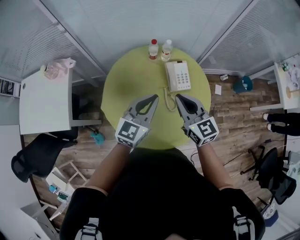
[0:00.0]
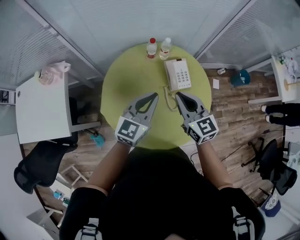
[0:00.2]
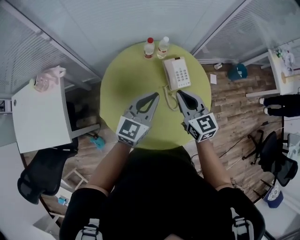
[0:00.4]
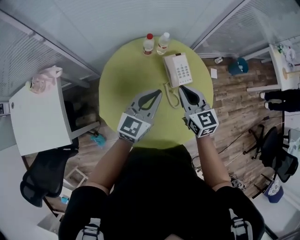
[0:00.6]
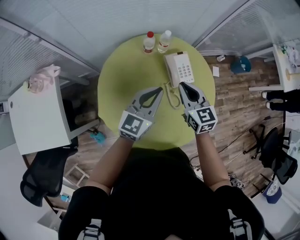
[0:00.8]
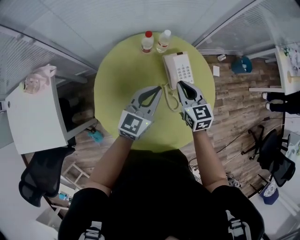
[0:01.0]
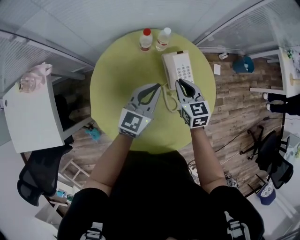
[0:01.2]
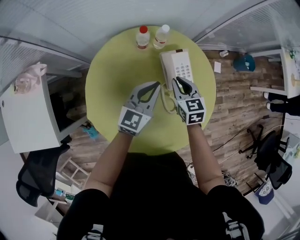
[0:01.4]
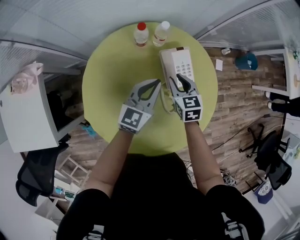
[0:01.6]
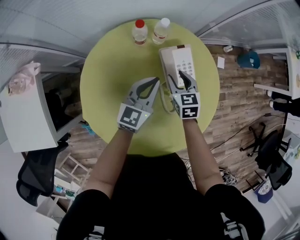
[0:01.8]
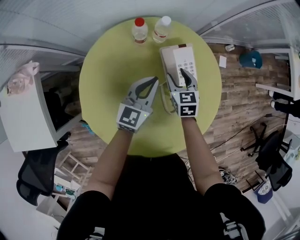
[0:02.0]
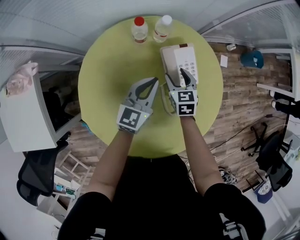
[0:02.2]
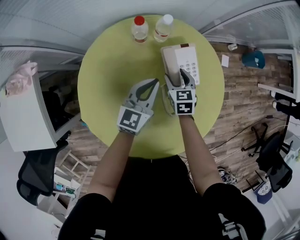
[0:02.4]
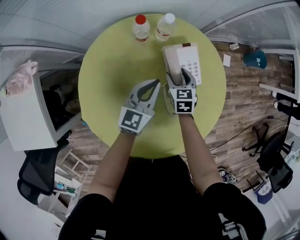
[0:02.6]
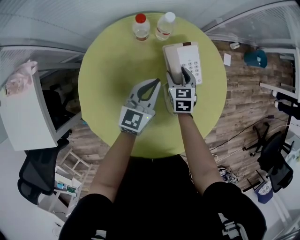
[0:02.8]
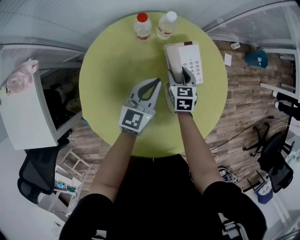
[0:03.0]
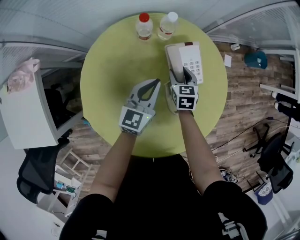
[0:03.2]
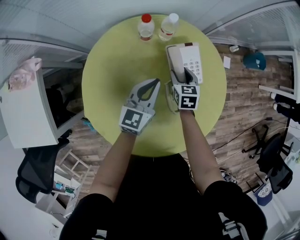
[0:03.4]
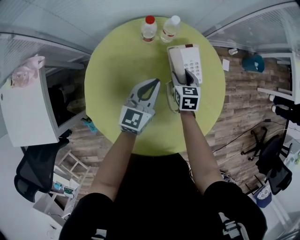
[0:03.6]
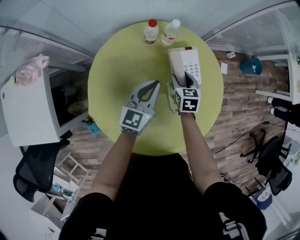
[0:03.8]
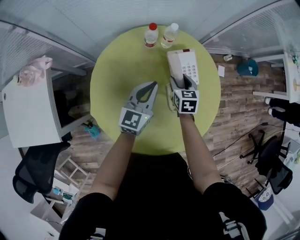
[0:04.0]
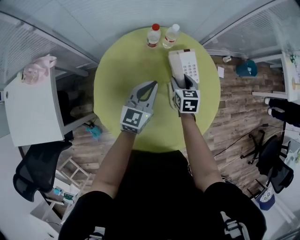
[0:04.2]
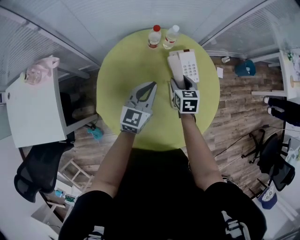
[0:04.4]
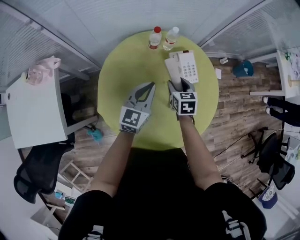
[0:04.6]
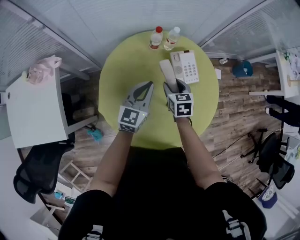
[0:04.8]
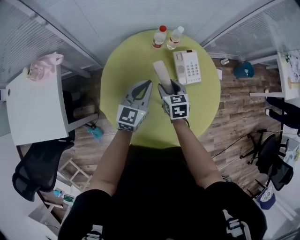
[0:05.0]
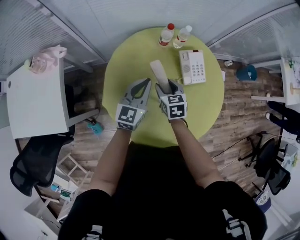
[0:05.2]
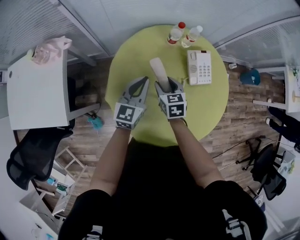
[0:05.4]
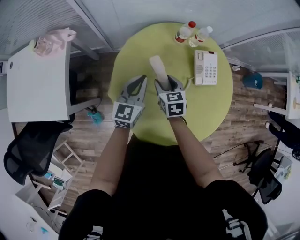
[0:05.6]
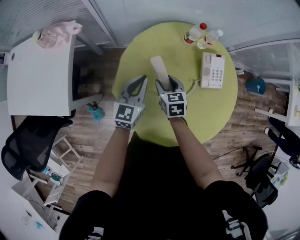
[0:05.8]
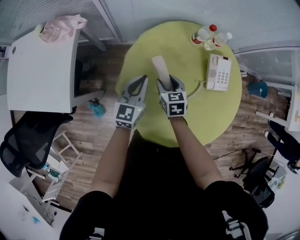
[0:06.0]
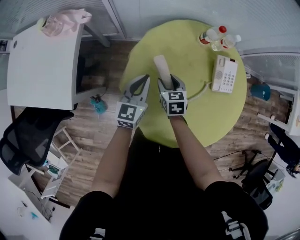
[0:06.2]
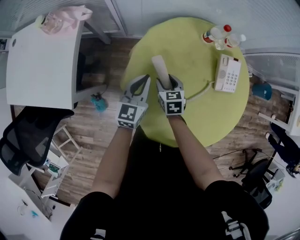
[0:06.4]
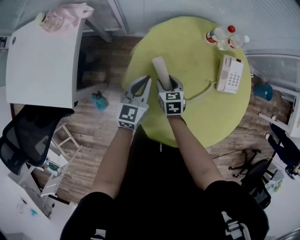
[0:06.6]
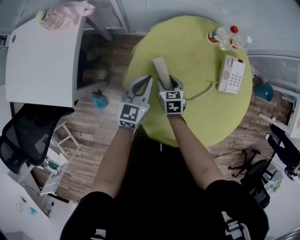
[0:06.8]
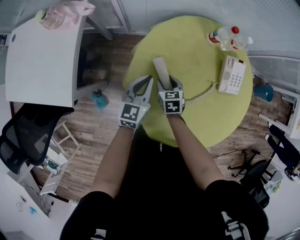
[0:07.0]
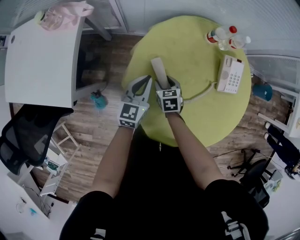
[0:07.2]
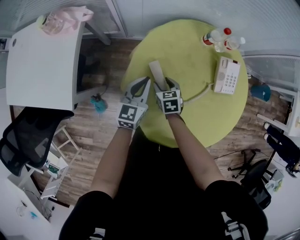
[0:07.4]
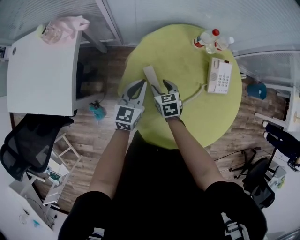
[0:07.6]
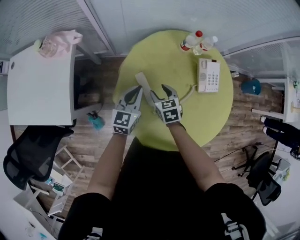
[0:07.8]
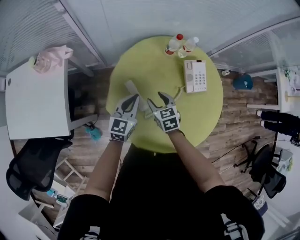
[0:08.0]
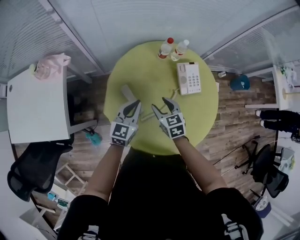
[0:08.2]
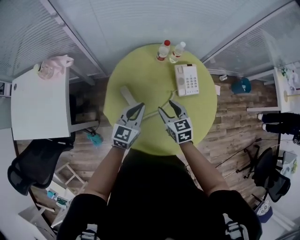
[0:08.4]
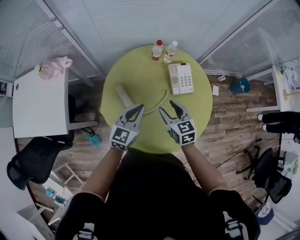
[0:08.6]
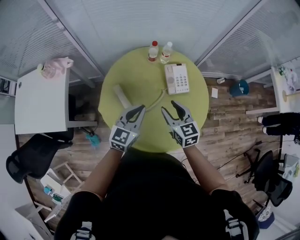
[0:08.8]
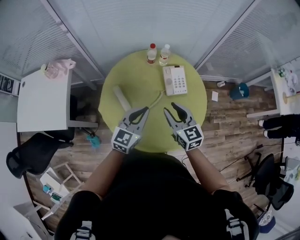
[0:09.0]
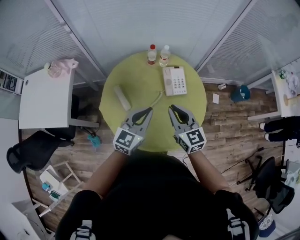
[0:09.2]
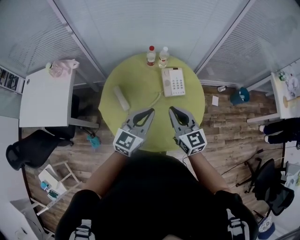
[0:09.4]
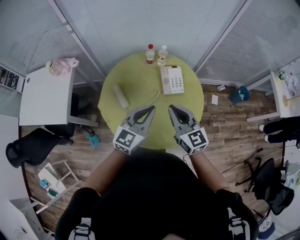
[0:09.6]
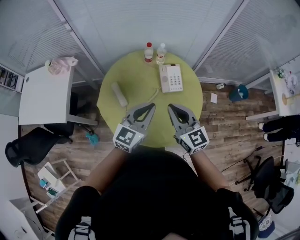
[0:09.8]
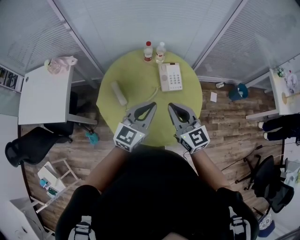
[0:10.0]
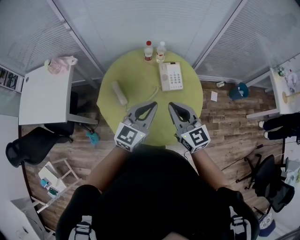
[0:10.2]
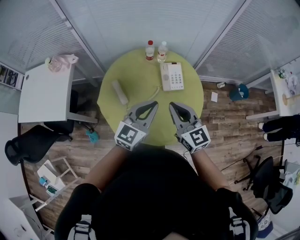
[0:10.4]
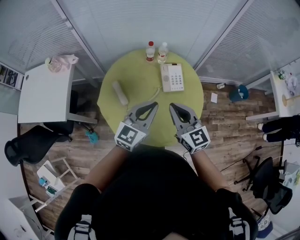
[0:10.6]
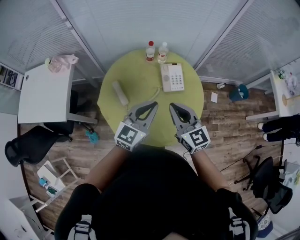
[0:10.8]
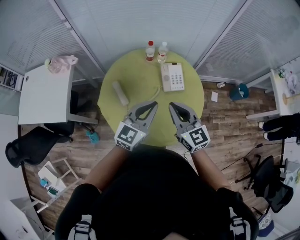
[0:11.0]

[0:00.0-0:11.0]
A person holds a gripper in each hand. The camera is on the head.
0:00.0 to 0:01.6: The grippers both shift downward and forward by some 30 cm. The right gripper swivels approximately 30 degrees, and opens up.
0:01.6 to 0:03.2: The right gripper shifts approximately 10 cm downward, and opens its fingers; the left gripper shifts about 5 cm downward.
0:03.2 to 0:04.8: The two grippers go about 15 cm upward, backward and to the left.
0:04.8 to 0:06.2: The grippers both shift to the left and downward by some 20 cm. The left gripper turns by roughly 20 degrees.
0:06.2 to 0:07.8: The right gripper goes downward and returns, roughly 5 cm each way.
0:07.8 to 0:09.4: The right gripper travels upward, to the right and backward by roughly 40 cm, angles its fingers upward, by about 40 degrees, and closes its fingers, while the left gripper travels to the right, upward and backward by about 35 cm.
0:09.4 to 0:11.0: The grippers make only small movements.

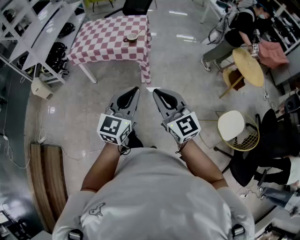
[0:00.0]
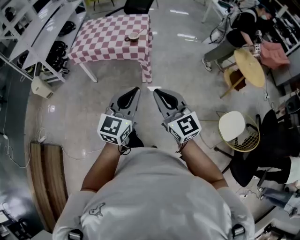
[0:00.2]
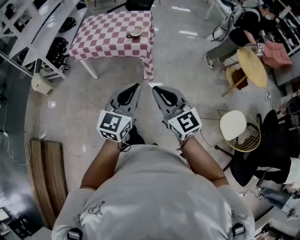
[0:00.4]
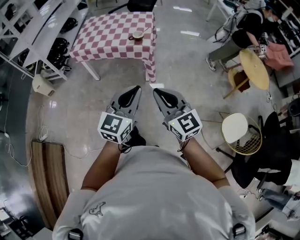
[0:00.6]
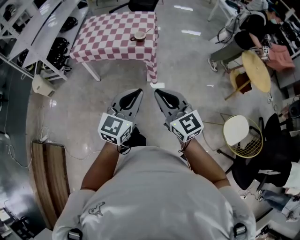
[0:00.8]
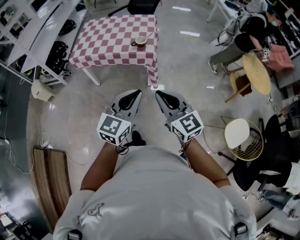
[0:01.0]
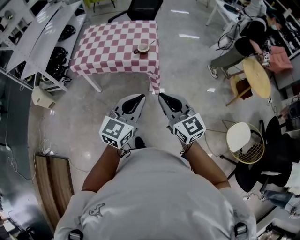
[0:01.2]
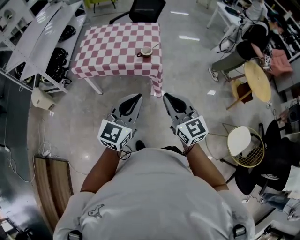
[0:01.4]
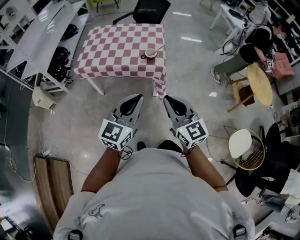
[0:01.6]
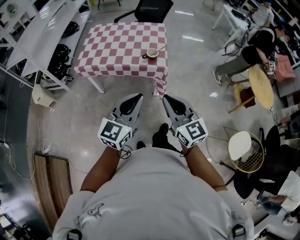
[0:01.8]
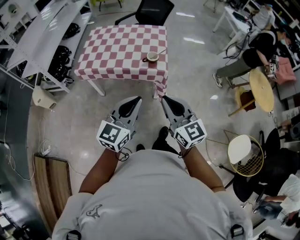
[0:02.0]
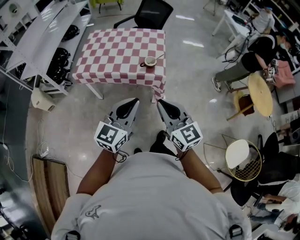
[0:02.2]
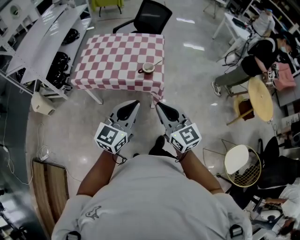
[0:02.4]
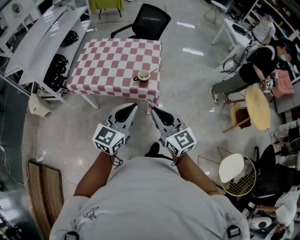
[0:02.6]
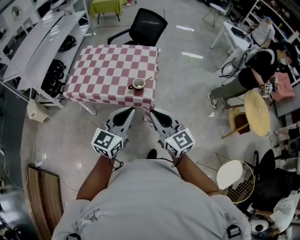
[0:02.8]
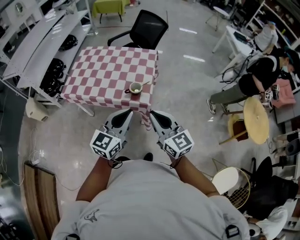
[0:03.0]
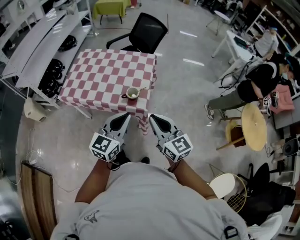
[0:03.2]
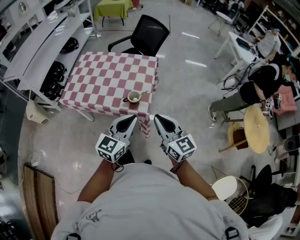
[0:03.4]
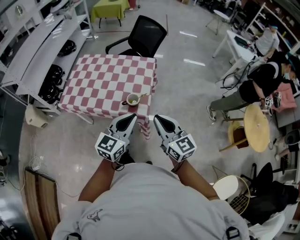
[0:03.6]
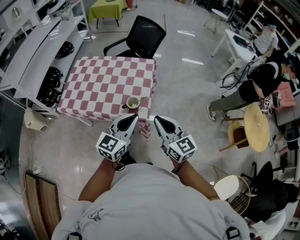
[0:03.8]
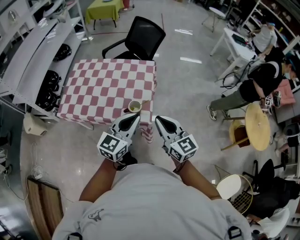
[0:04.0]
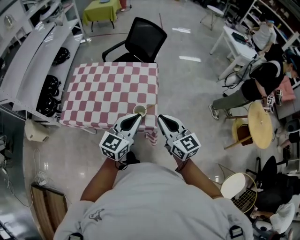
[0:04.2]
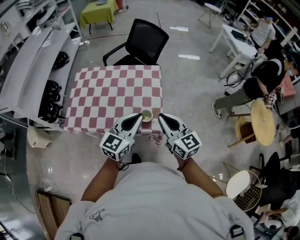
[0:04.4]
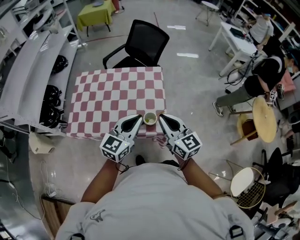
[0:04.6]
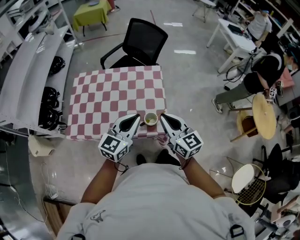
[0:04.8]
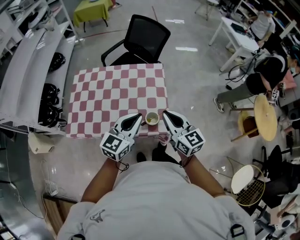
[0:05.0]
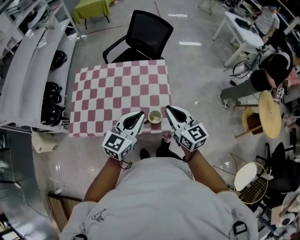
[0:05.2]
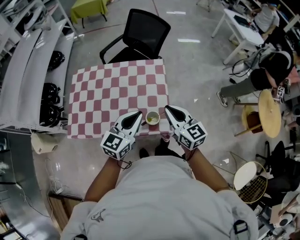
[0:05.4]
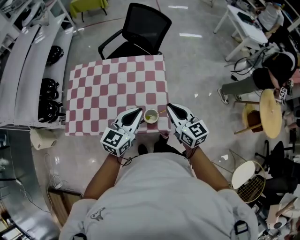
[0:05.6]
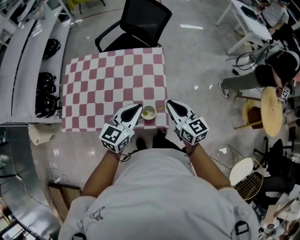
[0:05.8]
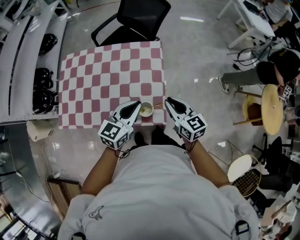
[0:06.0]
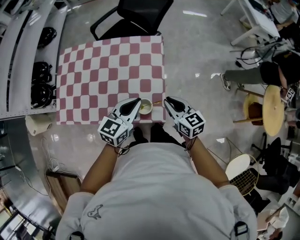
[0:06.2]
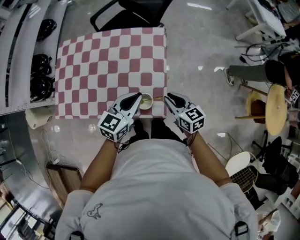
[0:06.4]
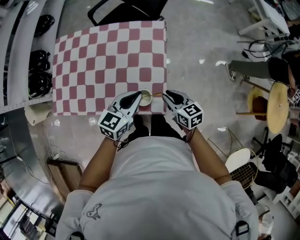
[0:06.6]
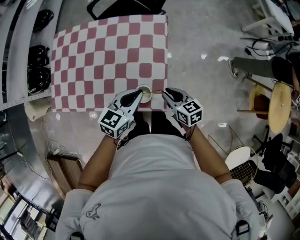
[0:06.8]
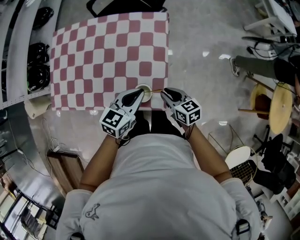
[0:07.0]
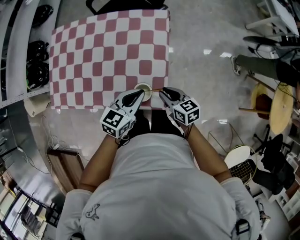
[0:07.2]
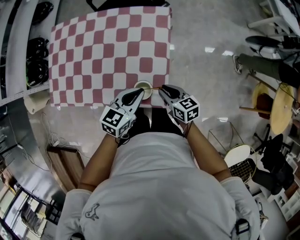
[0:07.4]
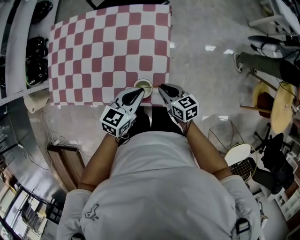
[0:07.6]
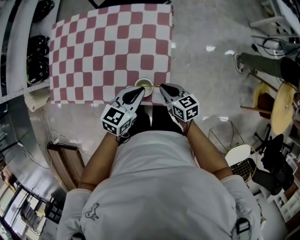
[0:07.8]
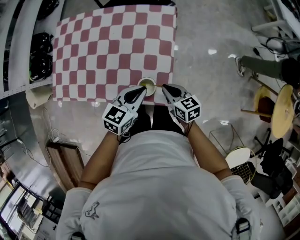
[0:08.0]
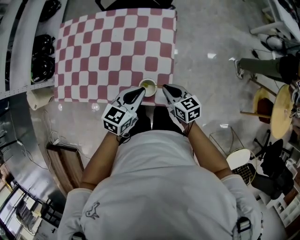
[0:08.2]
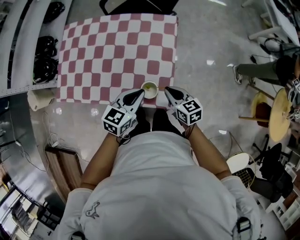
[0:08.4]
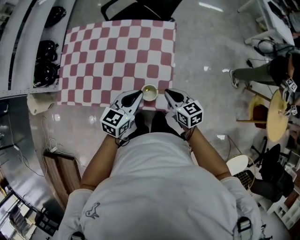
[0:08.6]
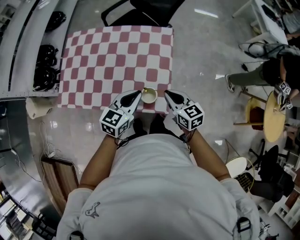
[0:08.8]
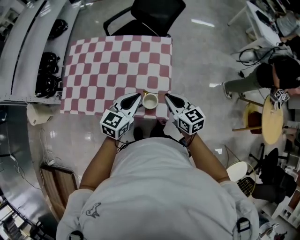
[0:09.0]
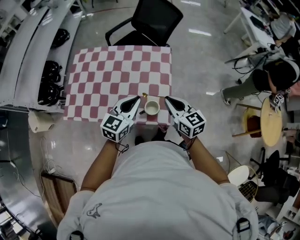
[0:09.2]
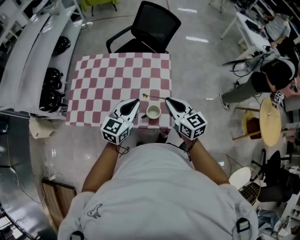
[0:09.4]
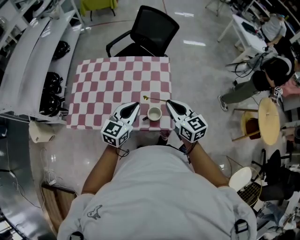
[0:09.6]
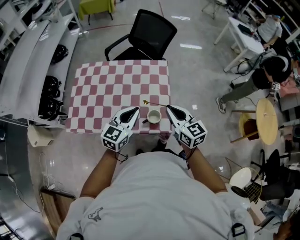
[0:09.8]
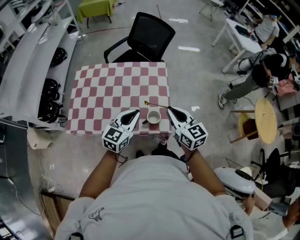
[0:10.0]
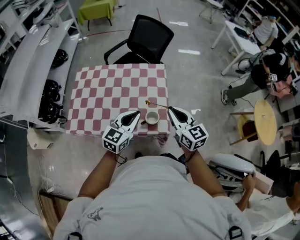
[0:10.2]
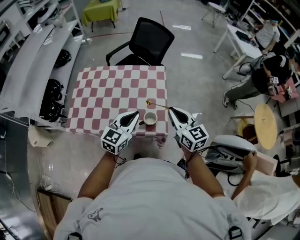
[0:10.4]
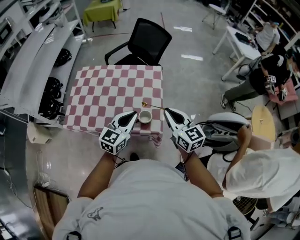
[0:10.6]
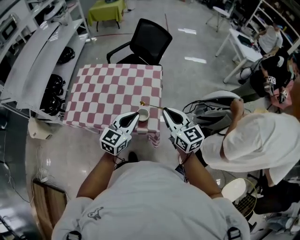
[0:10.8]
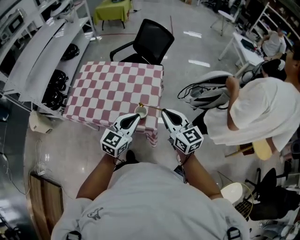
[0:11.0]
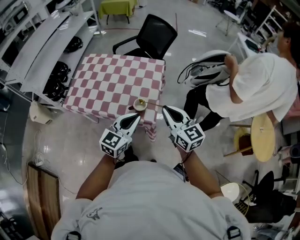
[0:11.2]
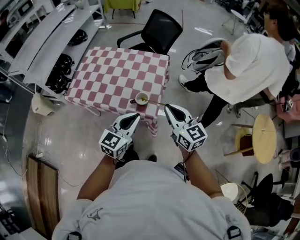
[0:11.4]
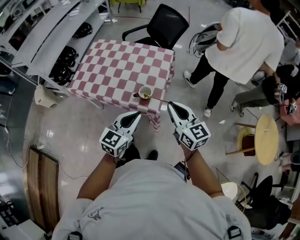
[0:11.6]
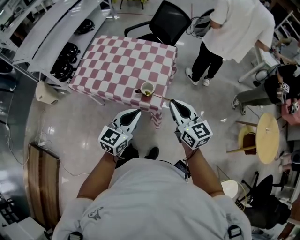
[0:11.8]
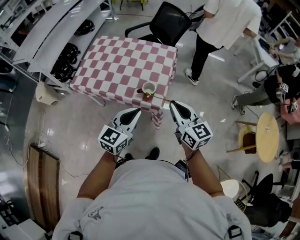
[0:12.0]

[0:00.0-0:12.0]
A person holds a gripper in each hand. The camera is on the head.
0:00.0 to 0:01.6: Both grippers move forward and to the left, some 25 cm.
0:01.6 to 0:03.0: Both grippers travel together forward and to the right, roughly 25 cm.
0:03.0 to 0:04.4: The grippers both shift forward by roughly 20 cm.
0:04.4 to 0:06.0: The two grippers go roughly 20 cm forward and downward.
0:06.0 to 0:07.6: The two grippers go roughly 15 cm downward. The right gripper changes its angle by about 20 degrees.
0:07.6 to 0:09.0: The left gripper shifts roughly 10 cm upward and to the left, while the right gripper travels upward by roughly 15 cm, and turns by some 20 degrees.
0:09.0 to 0:10.4: The left gripper heads backward and upward, covering roughly 10 cm; the right gripper travels upward and backward by approximately 15 cm.
0:10.4 to 0:12.0: Both grippers move backward, about 15 cm.

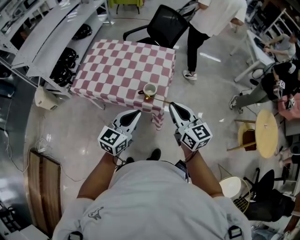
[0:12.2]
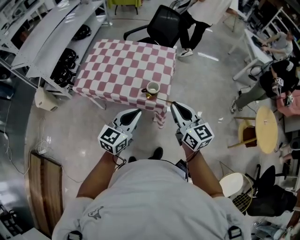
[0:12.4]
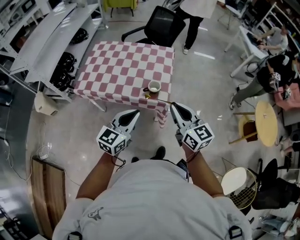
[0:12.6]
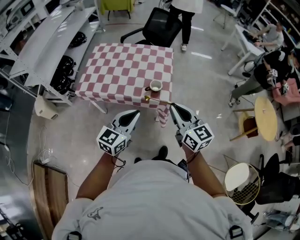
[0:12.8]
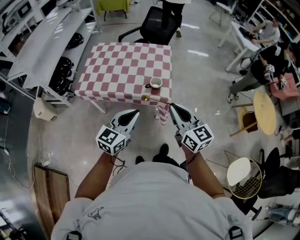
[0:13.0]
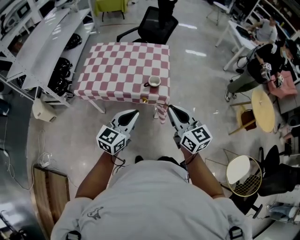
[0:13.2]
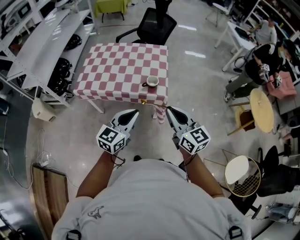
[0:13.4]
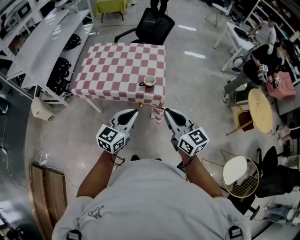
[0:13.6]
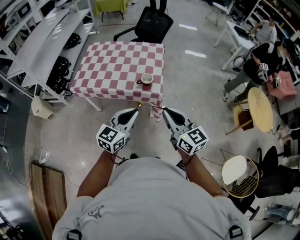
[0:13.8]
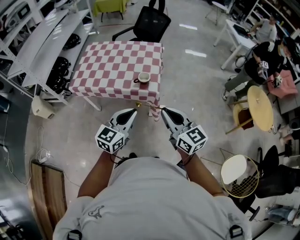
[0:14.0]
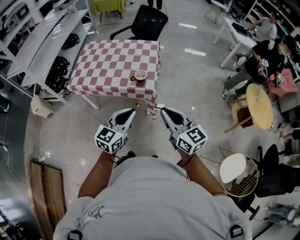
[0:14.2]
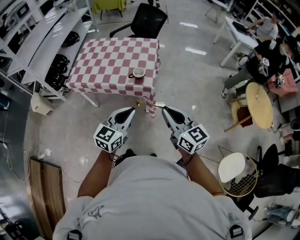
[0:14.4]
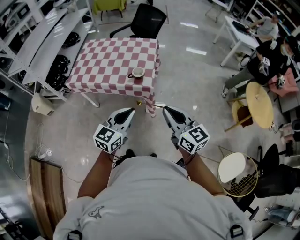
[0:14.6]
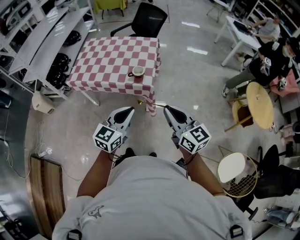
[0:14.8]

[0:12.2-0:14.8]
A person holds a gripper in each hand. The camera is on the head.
0:12.2 to 0:13.4: The grippers both shift backward and to the left by roughly 15 cm.
0:13.4 to 0:14.8: The grippers both shift to the right and backward by roughly 15 cm.
